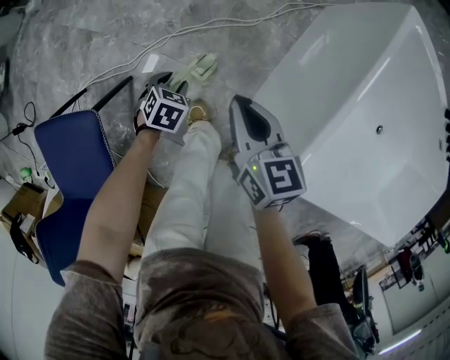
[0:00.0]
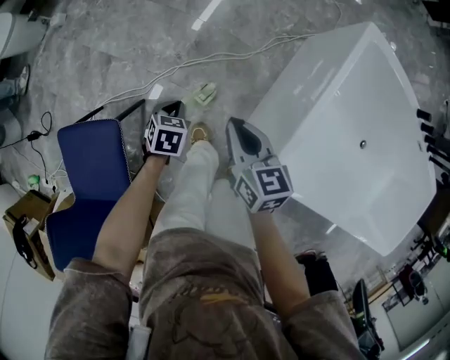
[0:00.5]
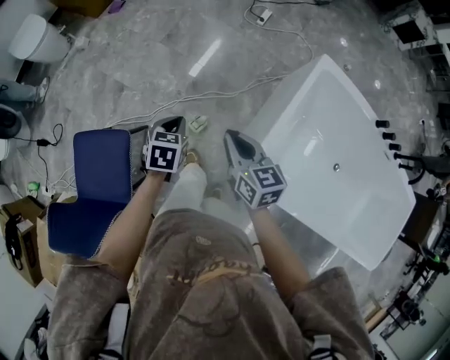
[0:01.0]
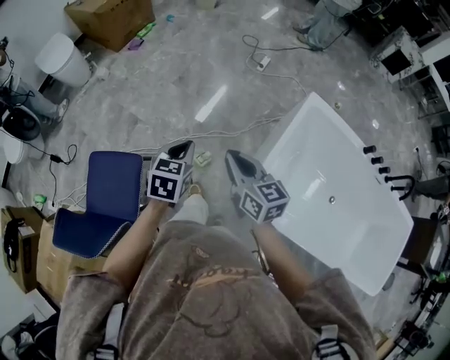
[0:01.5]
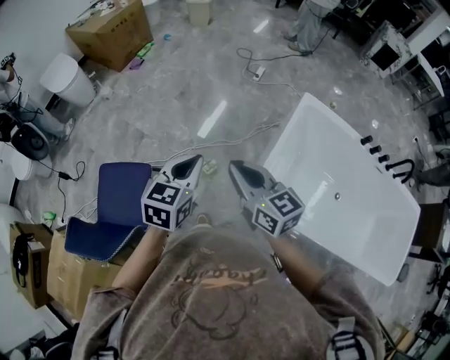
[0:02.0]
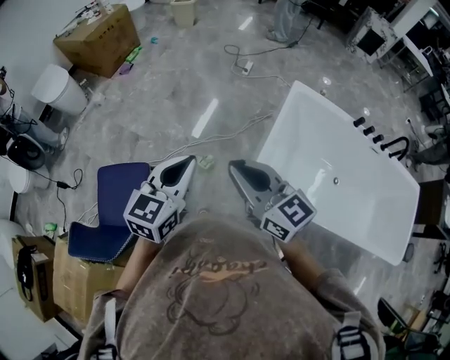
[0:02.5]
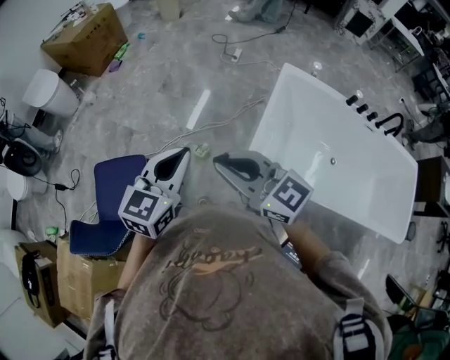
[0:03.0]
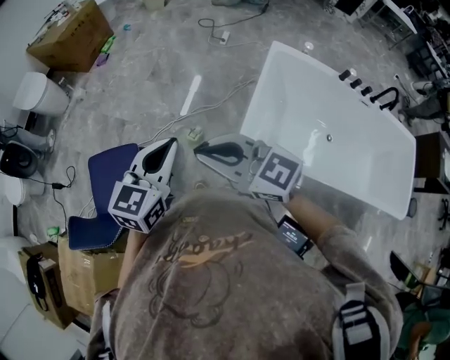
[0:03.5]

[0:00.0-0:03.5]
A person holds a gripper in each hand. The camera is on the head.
0:00.0 to 0:02.0: The two grippers go approximately 50 cm upward. The right gripper changes its angle by roughly 30 degrees, while the left gripper tilts its fingers approximately 40 degrees upward, and closes its fingers.
0:02.0 to 0:03.5: The right gripper shifts some 15 cm backward, to the left and upward, and rotates about 30 degrees. Meanwhile the left gripper heads backward, covering about 10 cm.

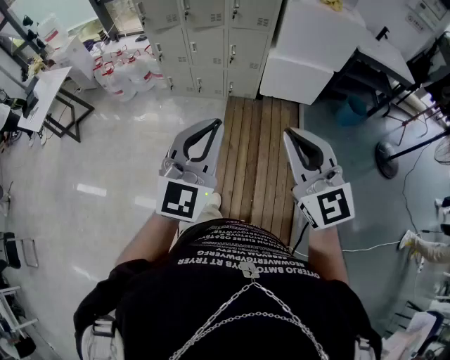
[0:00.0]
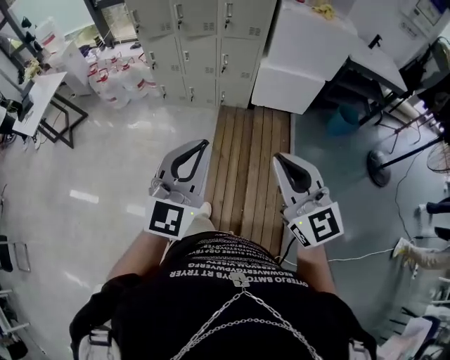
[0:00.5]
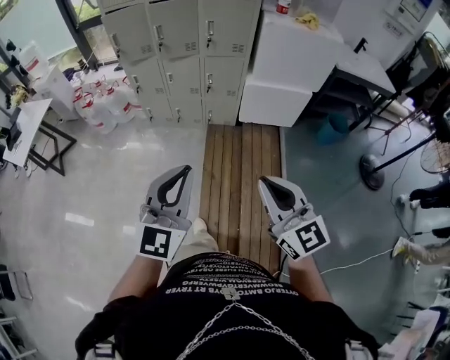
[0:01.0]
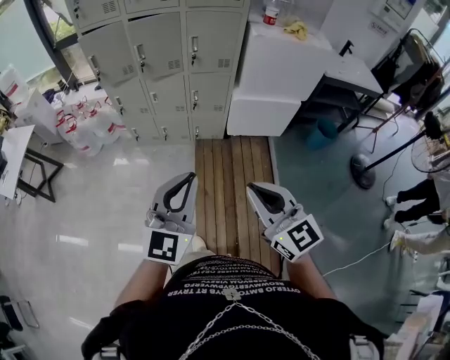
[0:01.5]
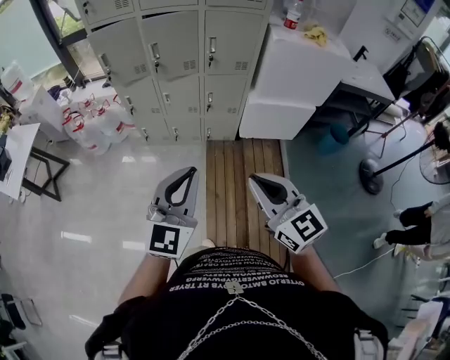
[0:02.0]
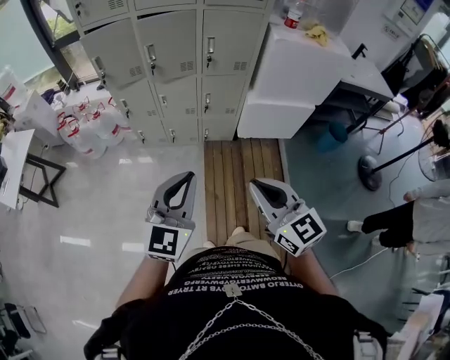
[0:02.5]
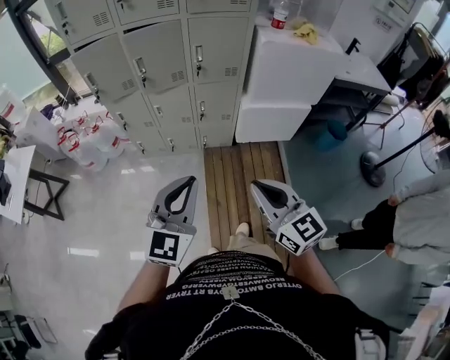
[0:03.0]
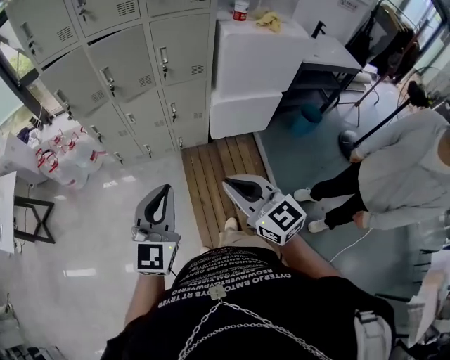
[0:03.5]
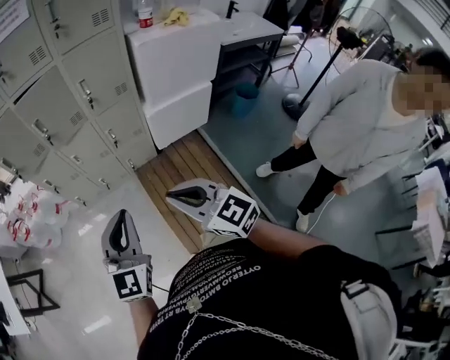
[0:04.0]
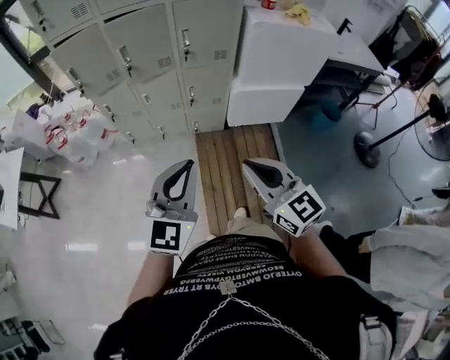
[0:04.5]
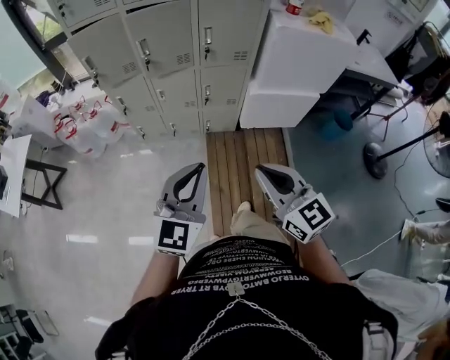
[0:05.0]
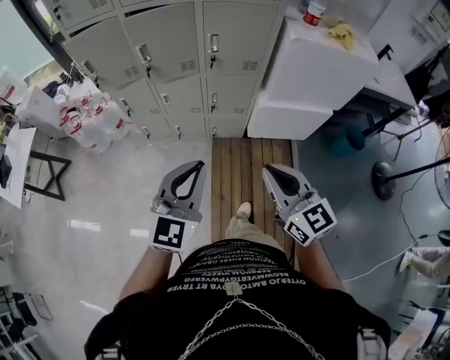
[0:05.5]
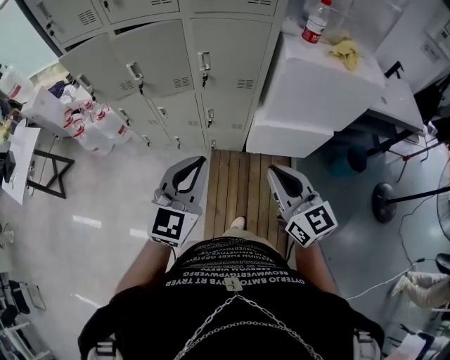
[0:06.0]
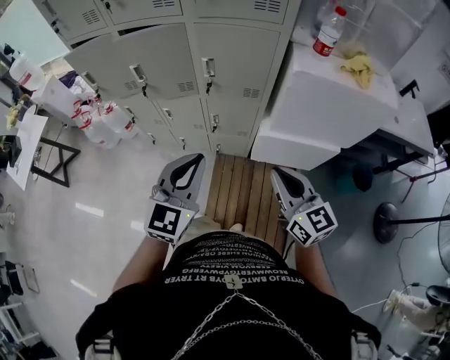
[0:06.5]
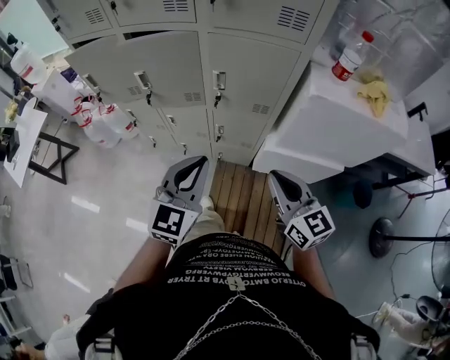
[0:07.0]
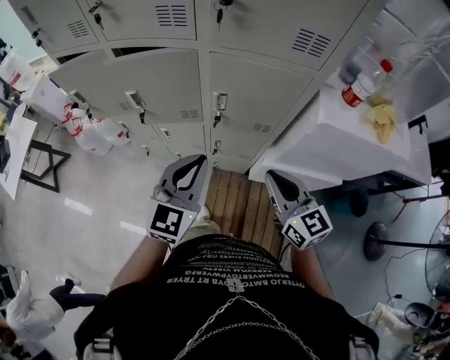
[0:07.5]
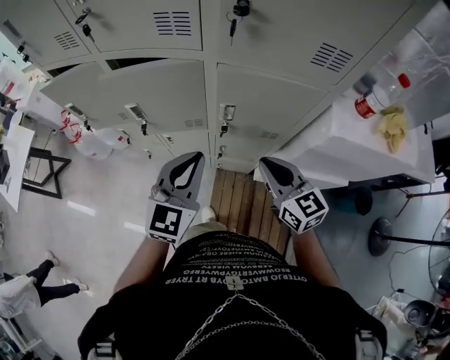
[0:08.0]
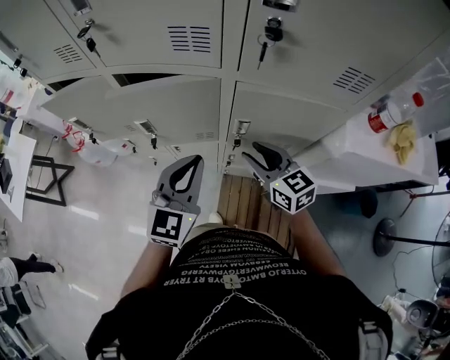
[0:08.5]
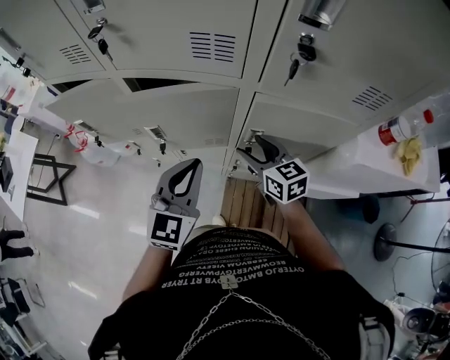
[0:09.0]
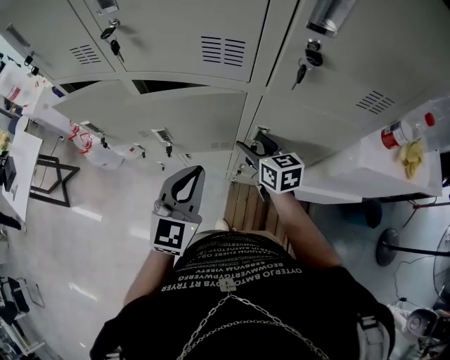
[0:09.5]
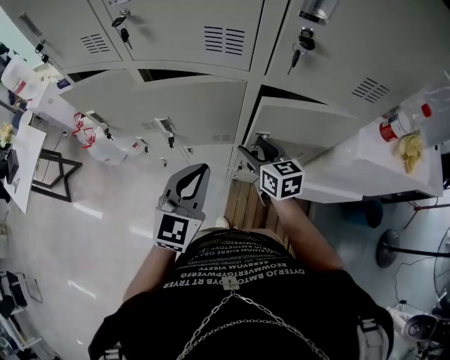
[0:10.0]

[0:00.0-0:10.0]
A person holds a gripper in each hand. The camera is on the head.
0:00.0 to 0:02.0: Both grippers move forward, some 20 cm.
0:02.0 to 0:04.0: The right gripper shifts by approximately 5 cm. Meanwhile the left gripper shifts by roughly 5 cm.
0:04.0 to 0:06.0: Both grippers move forward and to the right, some 30 cm.
0:06.0 to 0:08.0: The grippers both shift forward by about 30 cm.
0:08.0 to 0:10.0: The right gripper travels forward, to the left and downward by about 20 cm, and opens up. The left gripper travels to the left by roughly 10 cm.

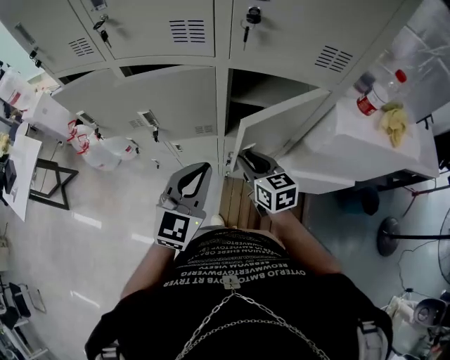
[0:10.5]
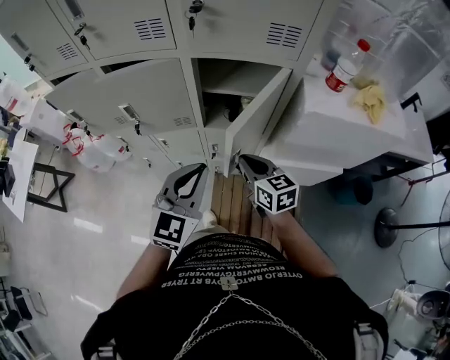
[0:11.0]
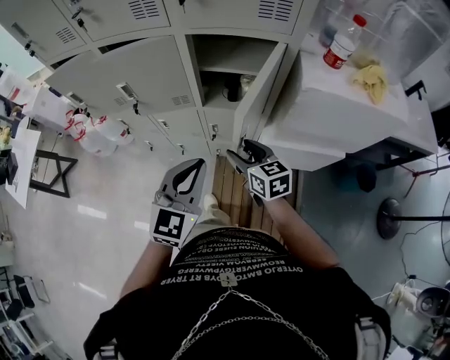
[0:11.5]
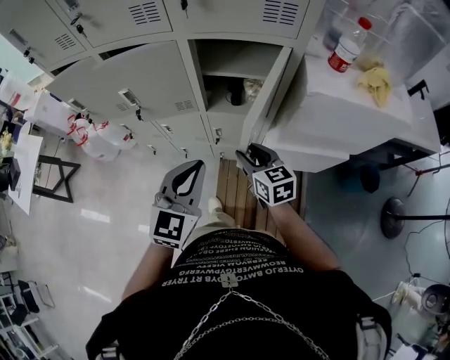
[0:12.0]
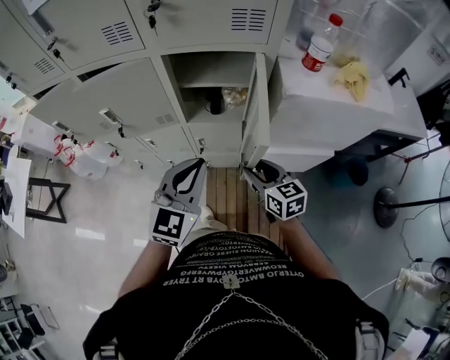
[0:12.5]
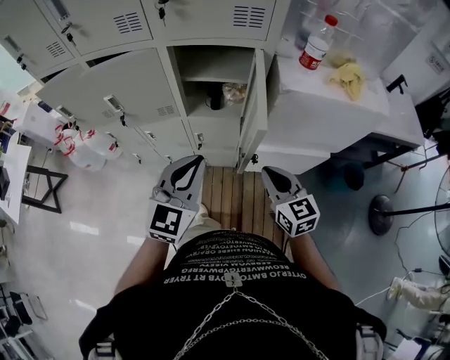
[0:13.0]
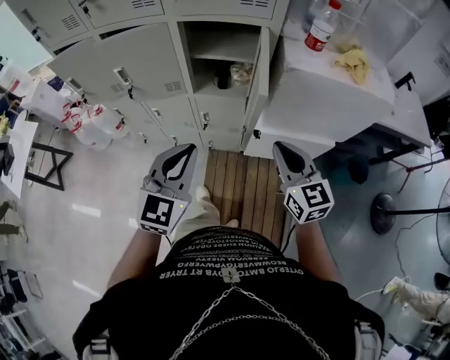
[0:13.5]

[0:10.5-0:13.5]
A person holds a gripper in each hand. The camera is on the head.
0:10.5 to 0:12.0: The two grippers go some 10 cm backward and to the right.
0:12.0 to 0:13.5: The right gripper travels to the right, backward and upward by roughly 20 cm, and closes its fingers. Meanwhile the left gripper shifts about 10 cm backward.

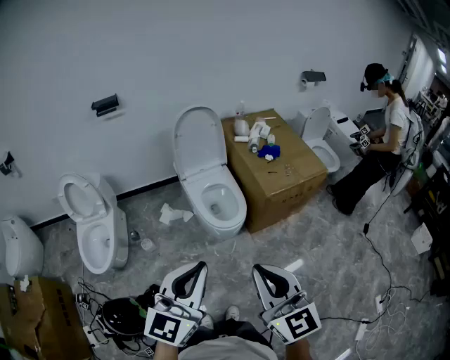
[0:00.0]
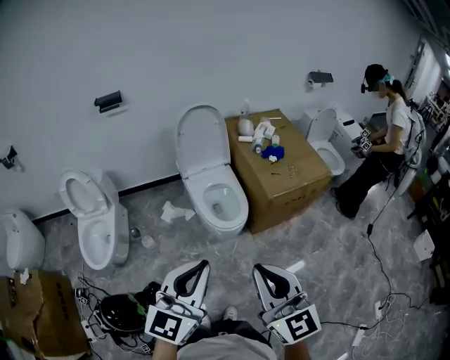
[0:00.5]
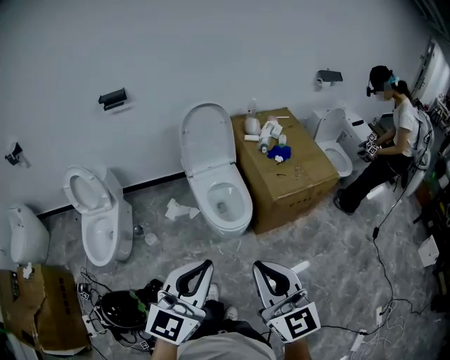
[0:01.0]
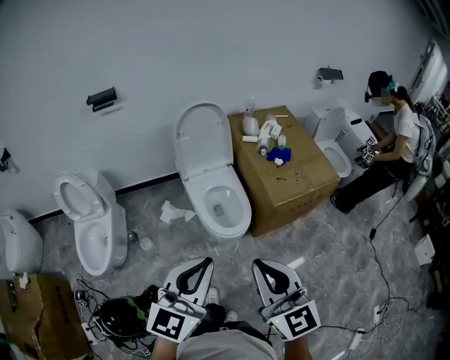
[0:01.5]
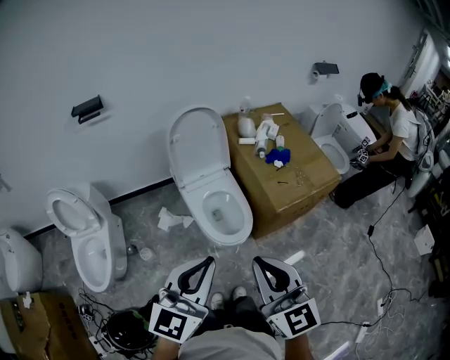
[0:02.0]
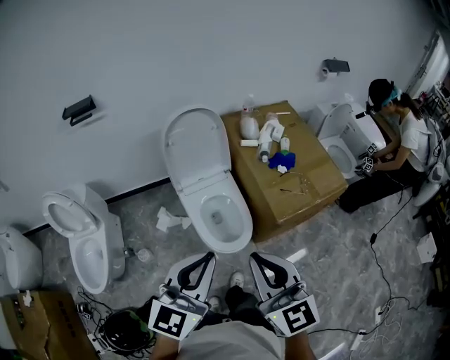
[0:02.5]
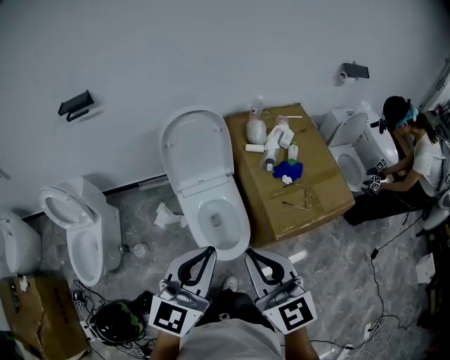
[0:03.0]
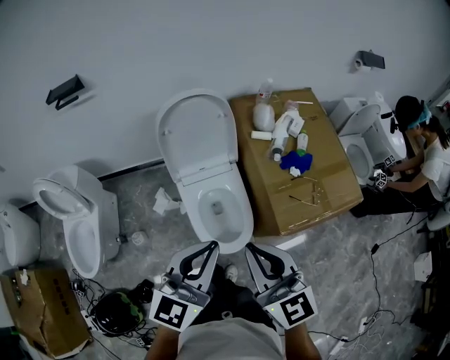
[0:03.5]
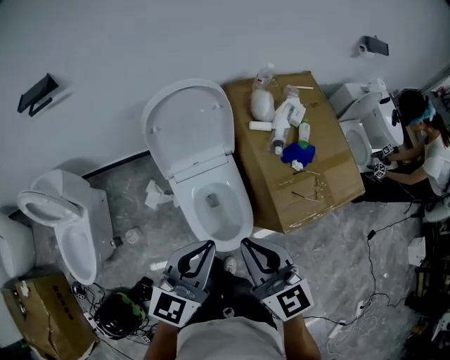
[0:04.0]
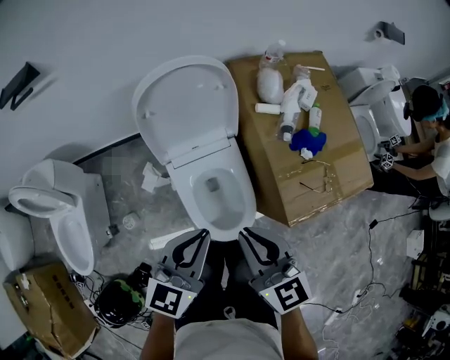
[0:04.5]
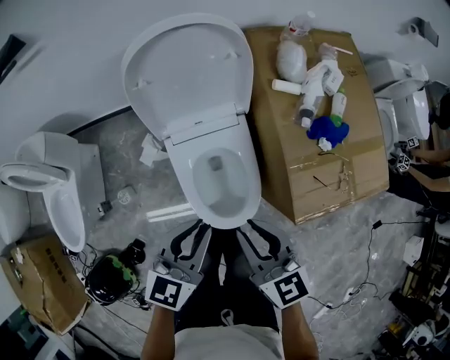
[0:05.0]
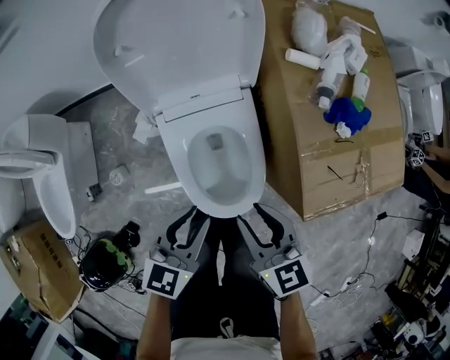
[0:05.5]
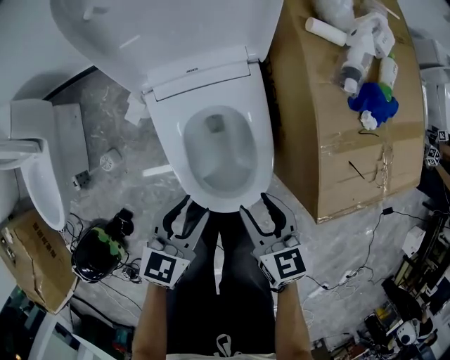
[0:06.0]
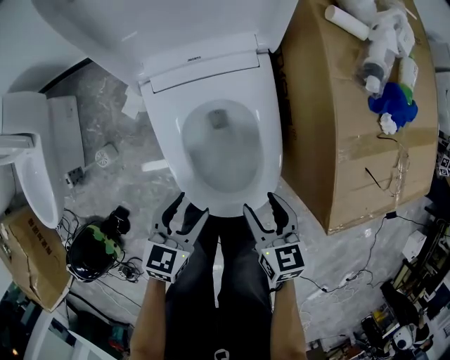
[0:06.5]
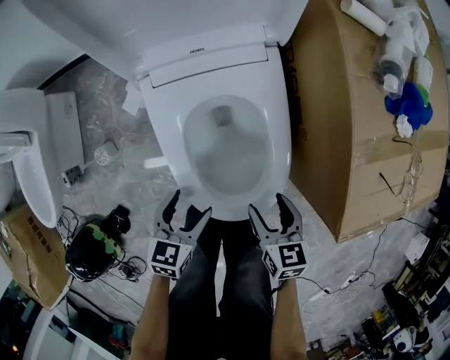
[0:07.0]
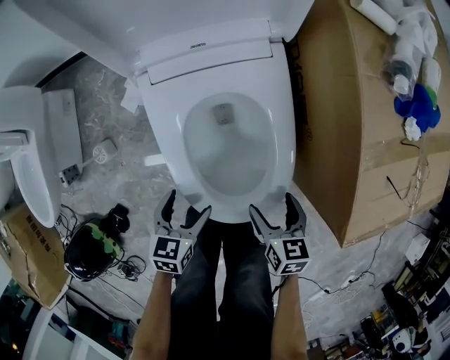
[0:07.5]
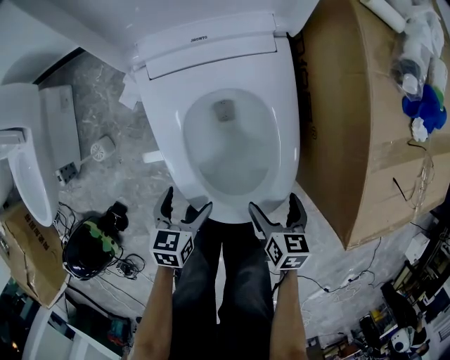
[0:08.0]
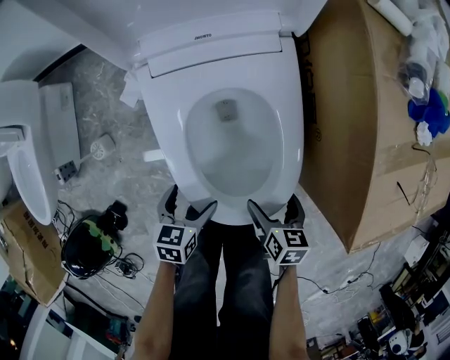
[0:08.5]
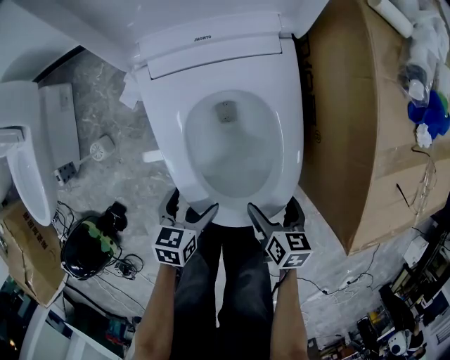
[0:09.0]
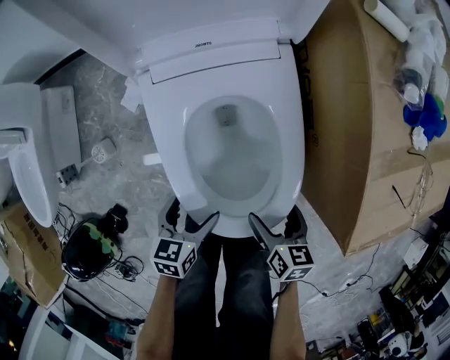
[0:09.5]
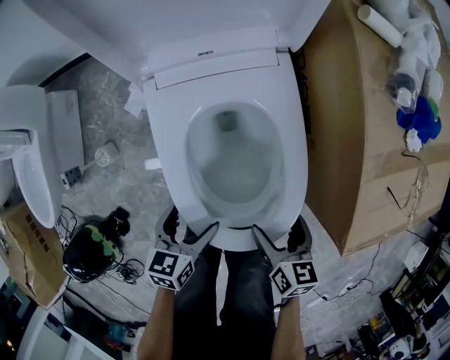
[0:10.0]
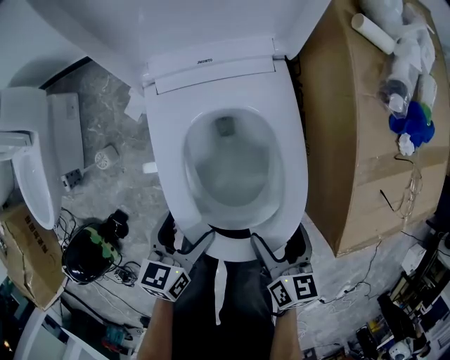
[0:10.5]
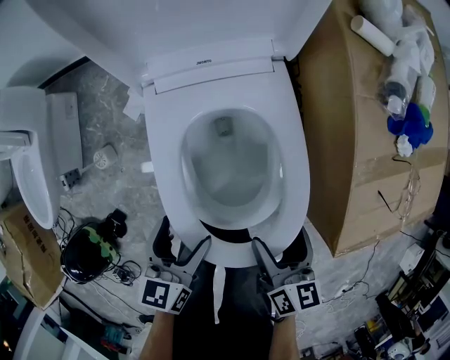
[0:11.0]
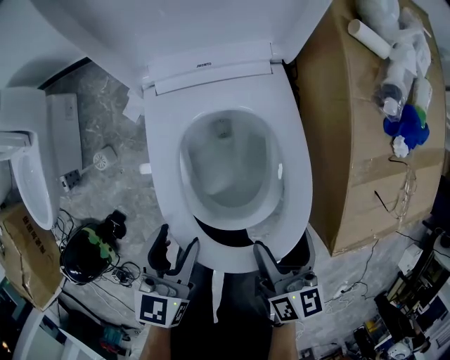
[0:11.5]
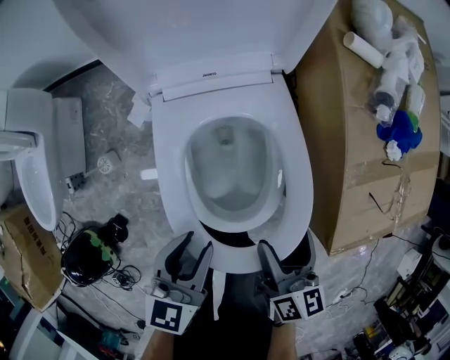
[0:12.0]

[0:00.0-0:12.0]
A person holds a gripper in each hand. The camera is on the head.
0:00.0 to 0:02.0: The grippers both shift forward by about 20 cm.
0:02.0 to 0:04.0: The grippers both shift forward by about 35 cm.
0:04.0 to 0:06.0: The grippers both shift downward by about 40 cm. The left gripper swivels about 30 degrees, and opens up. Meanwhile the right gripper rotates about 30 degrees, and opens its fingers.
0:06.0 to 0:08.0: Both grippers travel together downward, approximately 20 cm. The left gripper changes its angle by some 20 degrees, and opens up; the right gripper rotates roughly 20 degrees, and opens.
0:08.0 to 0:10.0: Both grippers travel together upward, roughly 5 cm.
0:10.0 to 0:12.0: The right gripper goes roughly 15 cm upward and forward, and changes its angle by roughly 20 degrees. The left gripper moves upward, roughly 15 cm, and closes its fingers.
